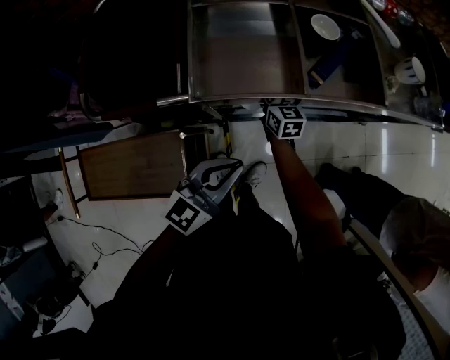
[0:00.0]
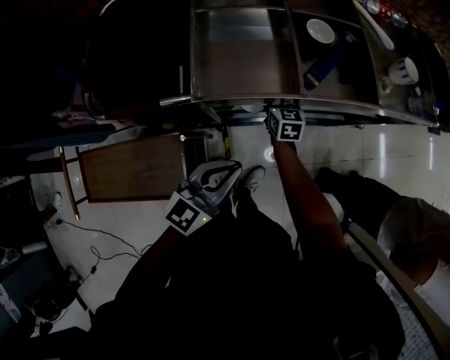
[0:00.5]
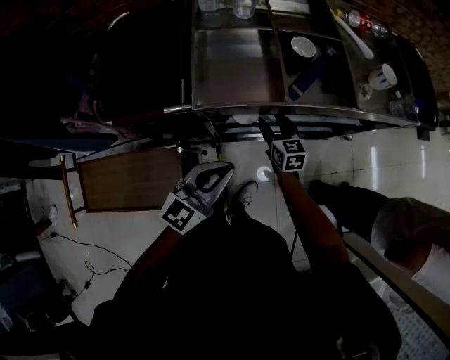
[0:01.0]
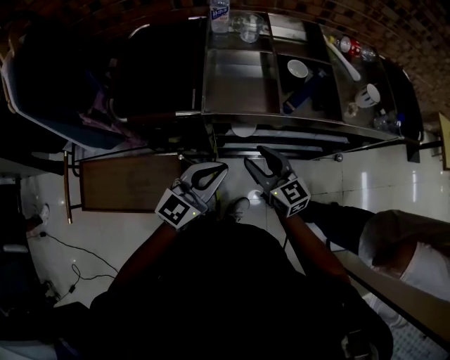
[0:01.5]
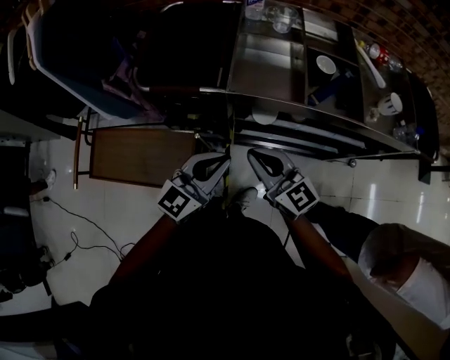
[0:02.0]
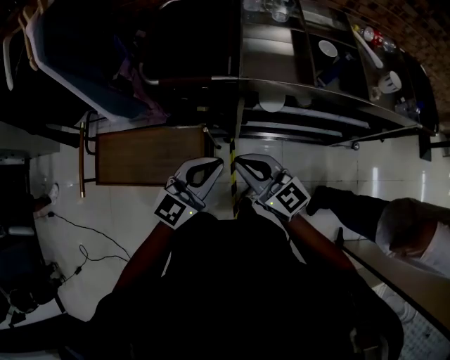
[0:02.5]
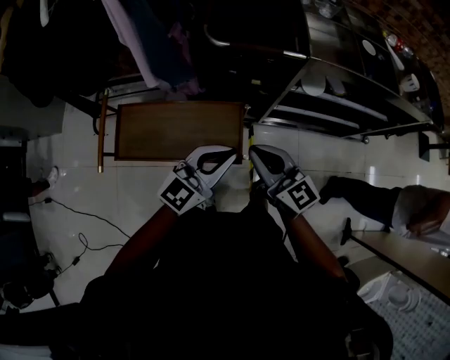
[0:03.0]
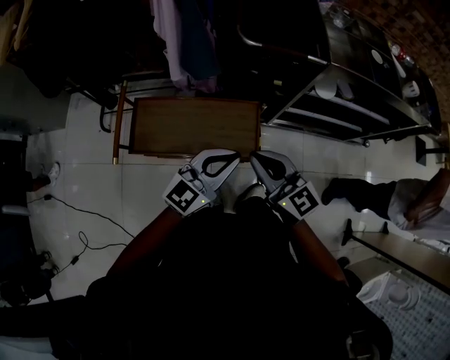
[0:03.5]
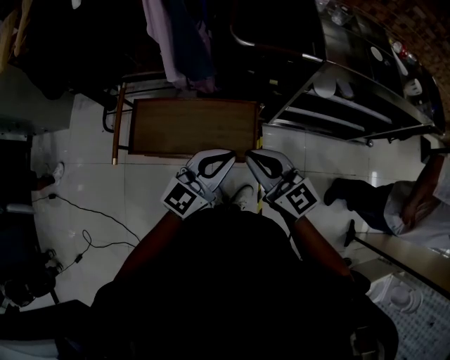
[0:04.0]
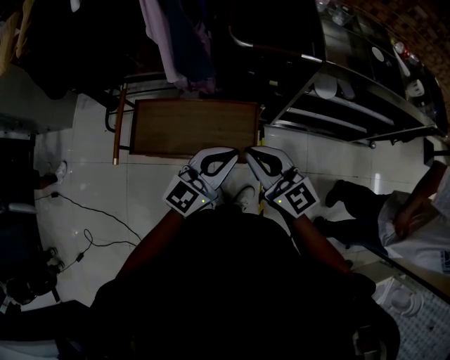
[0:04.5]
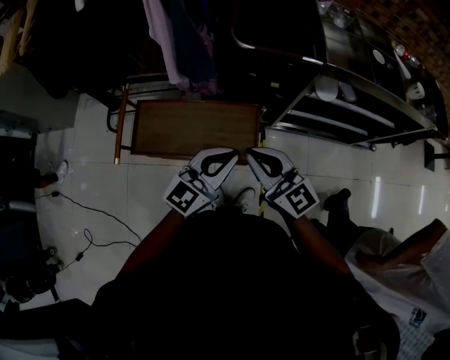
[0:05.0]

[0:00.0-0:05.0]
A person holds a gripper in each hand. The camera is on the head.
0:00.0 to 0:02.5: The left gripper ends up some 15 cm from where it was; the right gripper changes place by some 40 cm, changes its angle by roughly 40 degrees, and opens, then closes again.
0:02.5 to 0:05.0: The grippers both shift to the left and backward by some 25 cm.

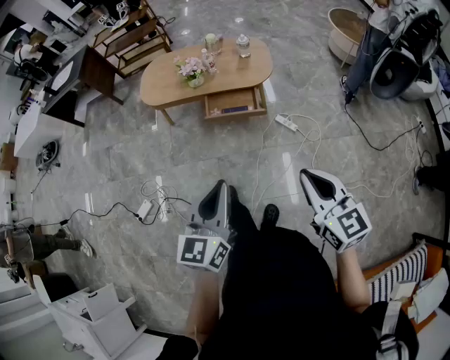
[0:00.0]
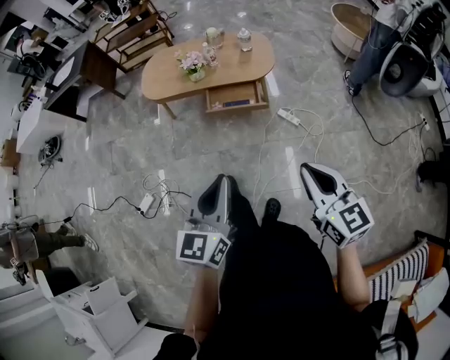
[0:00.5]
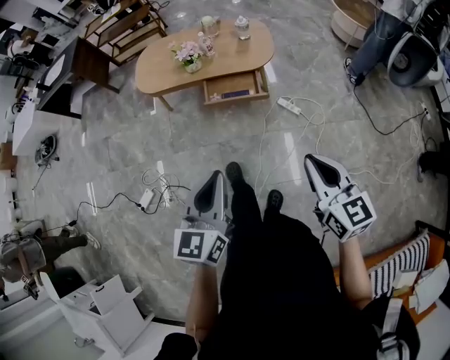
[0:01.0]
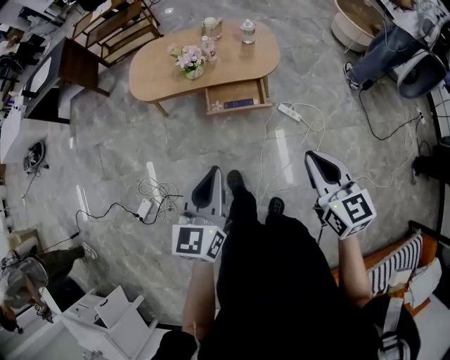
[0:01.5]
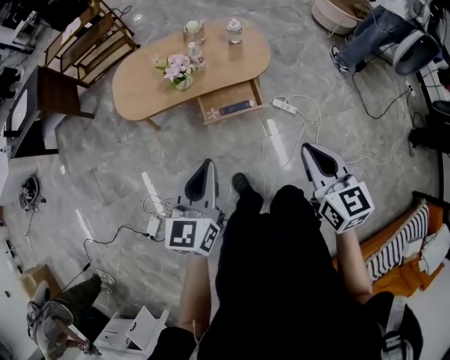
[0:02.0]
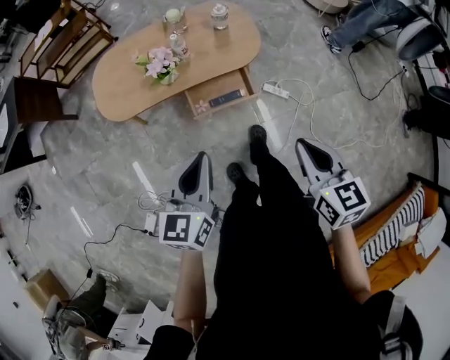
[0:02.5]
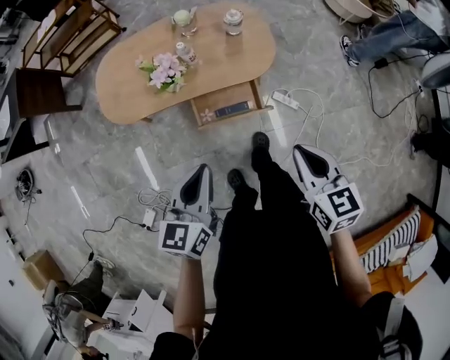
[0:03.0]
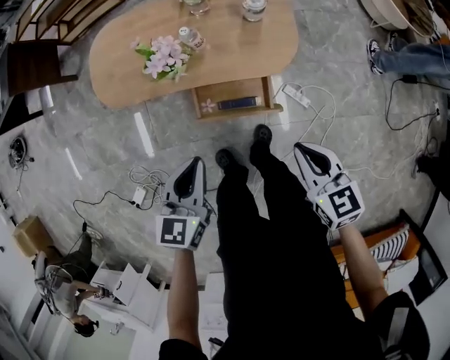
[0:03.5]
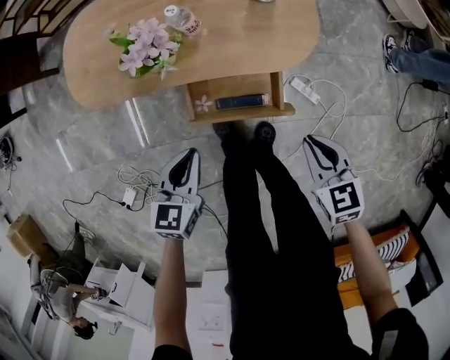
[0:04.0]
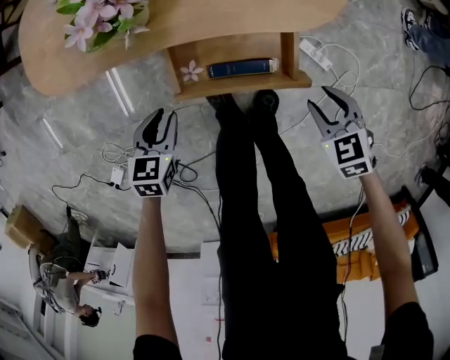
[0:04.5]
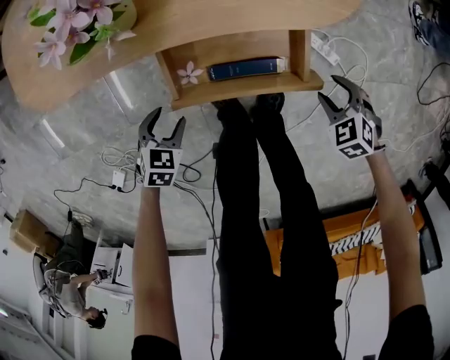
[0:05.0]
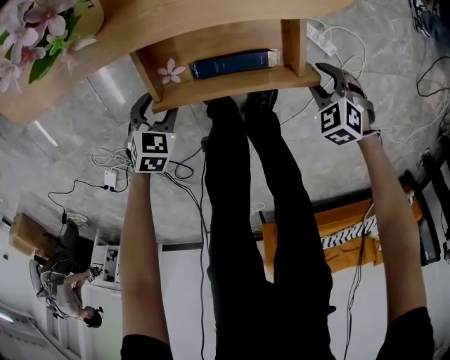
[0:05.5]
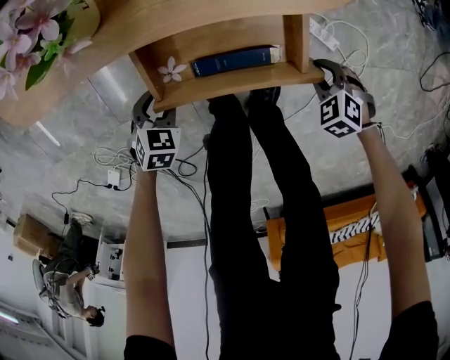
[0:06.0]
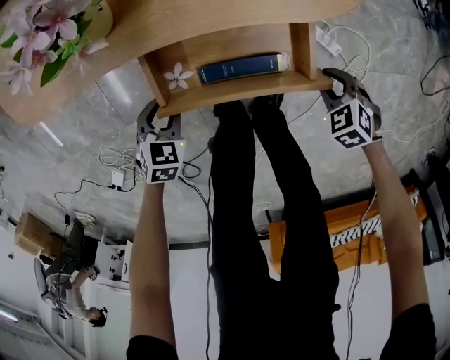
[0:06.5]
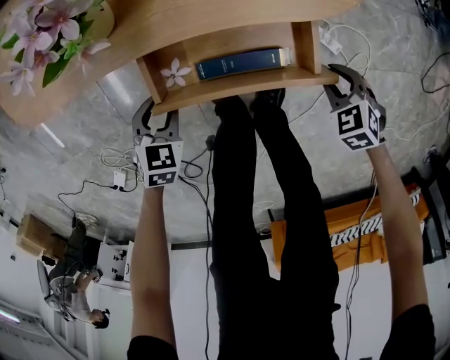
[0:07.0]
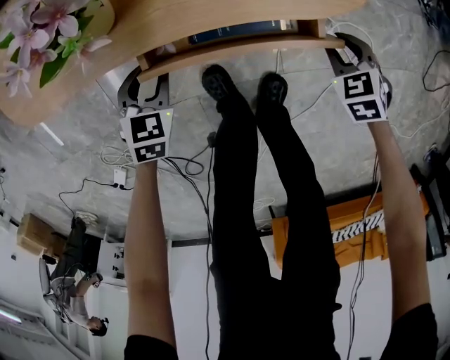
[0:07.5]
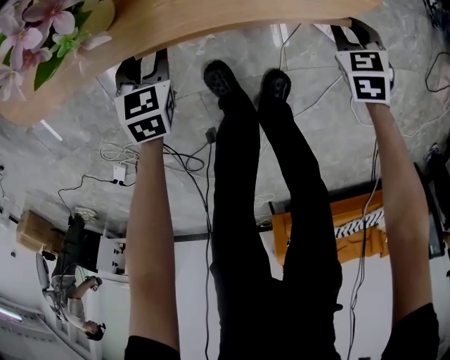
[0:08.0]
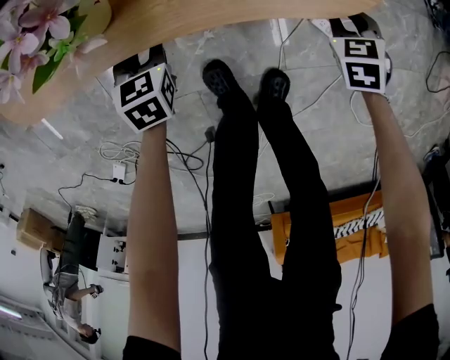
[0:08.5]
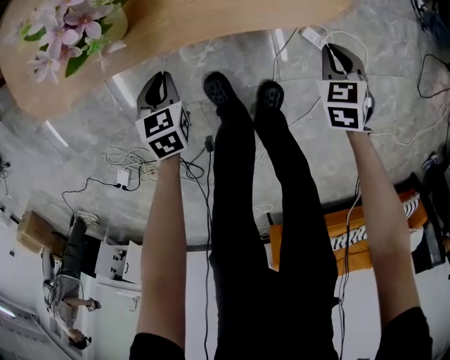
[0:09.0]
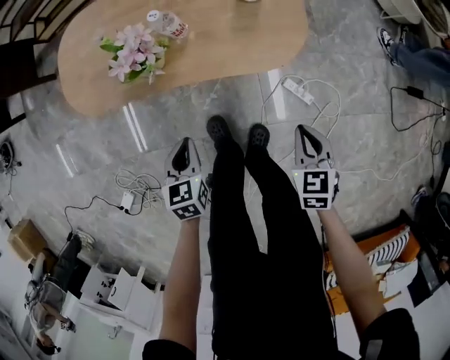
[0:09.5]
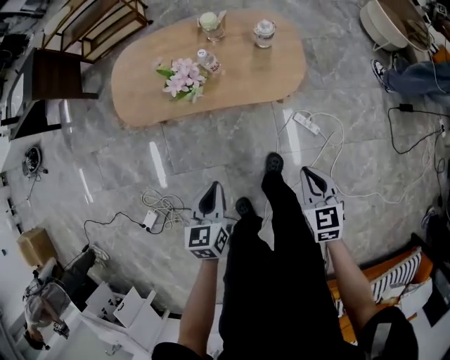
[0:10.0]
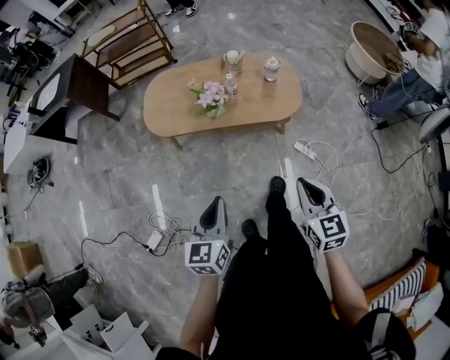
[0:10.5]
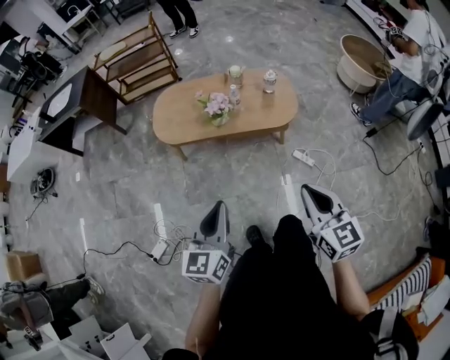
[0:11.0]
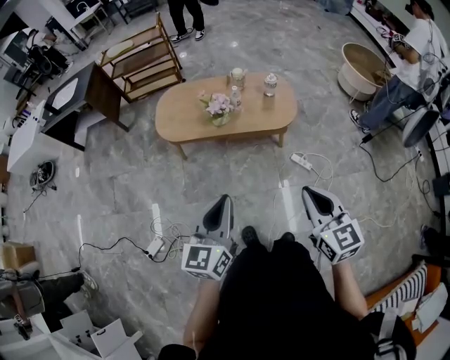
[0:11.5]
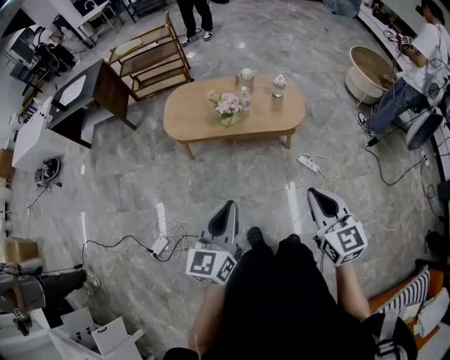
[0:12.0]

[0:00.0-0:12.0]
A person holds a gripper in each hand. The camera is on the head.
0:00.0 to 0:02.0: The two grippers go approximately 30 cm forward and to the left.
0:02.0 to 0:04.0: The two grippers go roughly 40 cm downward and forward. The left gripper changes its angle by some 30 degrees. Meanwhile the right gripper changes its angle by approximately 30 degrees.
0:04.0 to 0:06.0: The two grippers go about 35 cm downward. The left gripper rotates about 40 degrees, and opens up. The right gripper points its fingers some 30 degrees further downward, and opens, then closes again.
0:06.0 to 0:08.0: The right gripper ends up about 15 cm from where it was, and changes its angle by some 30 degrees. Meanwhile the left gripper changes place by roughly 15 cm, and changes its angle by approximately 20 degrees.
0:08.0 to 0:10.0: Both grippers travel together upward and backward, some 50 cm. The left gripper turns by roughly 30 degrees, and closes up. The right gripper turns by approximately 30 degrees.
0:10.0 to 0:12.0: The left gripper travels upward and backward by some 40 cm, and tips its fingers upward by approximately 30 degrees, while the right gripper heads upward, backward and to the left, covering about 40 cm, and turns by approximately 20 degrees.

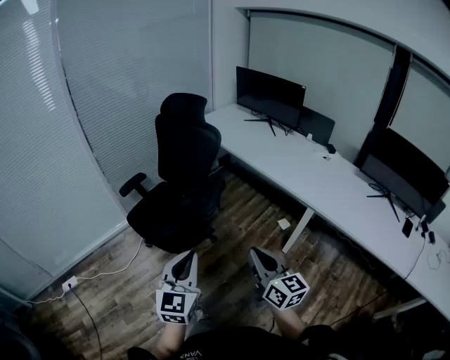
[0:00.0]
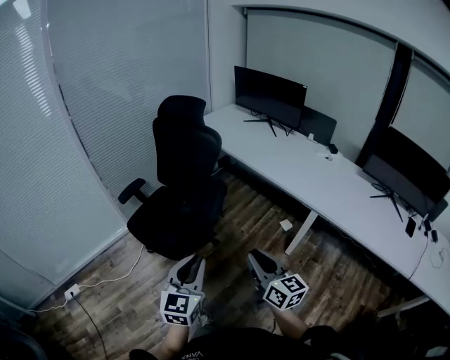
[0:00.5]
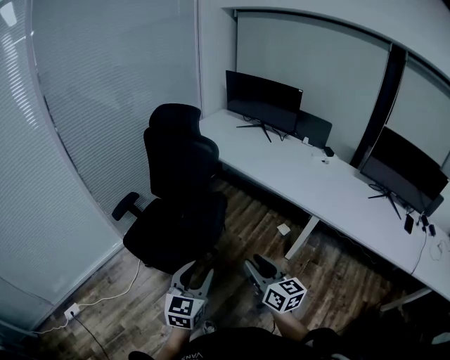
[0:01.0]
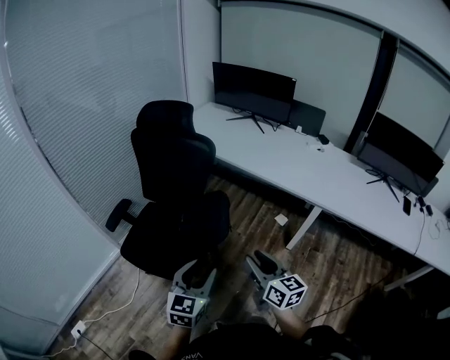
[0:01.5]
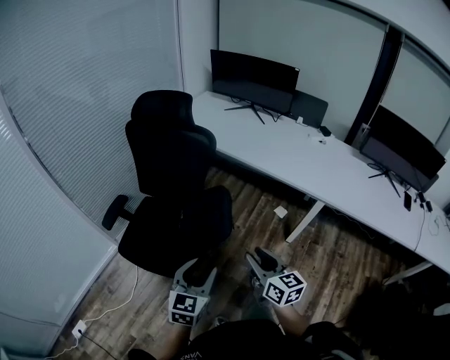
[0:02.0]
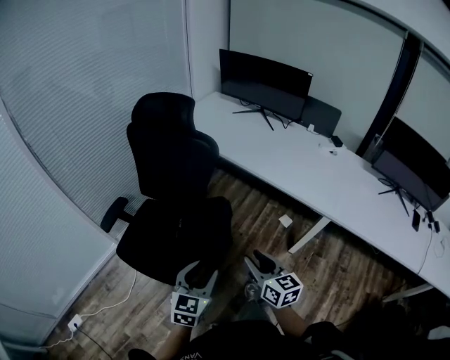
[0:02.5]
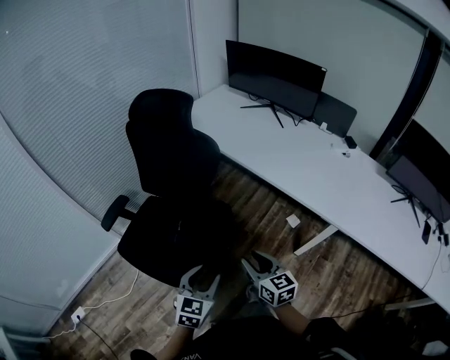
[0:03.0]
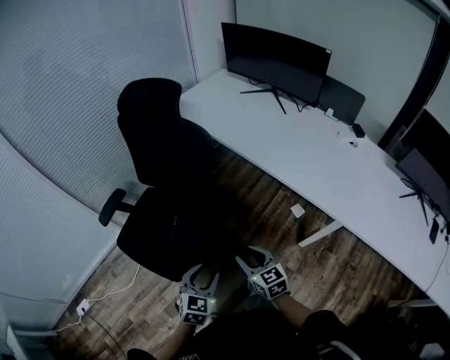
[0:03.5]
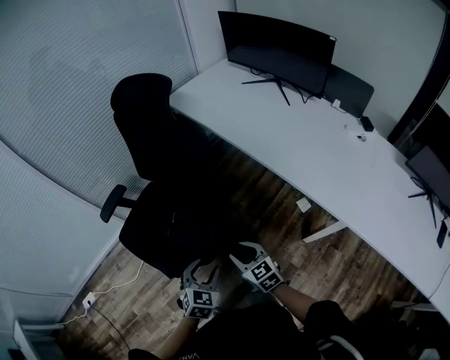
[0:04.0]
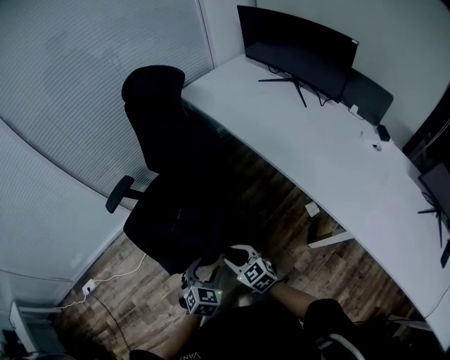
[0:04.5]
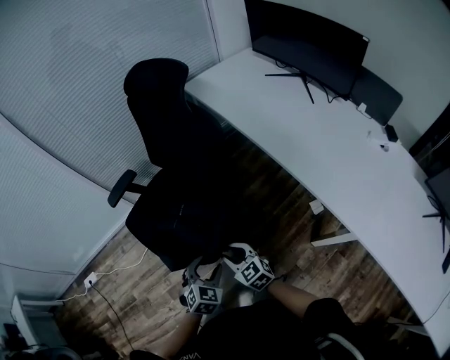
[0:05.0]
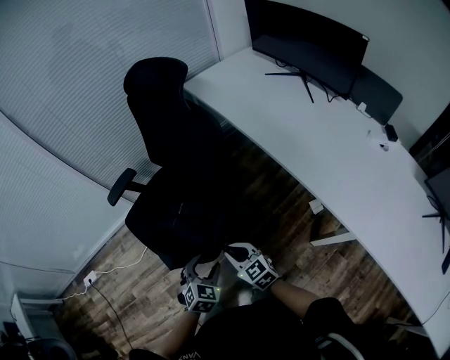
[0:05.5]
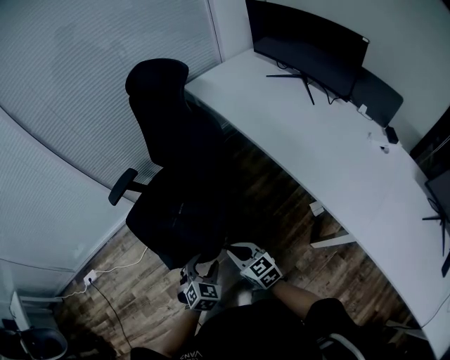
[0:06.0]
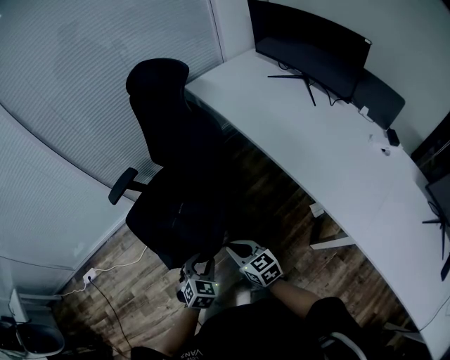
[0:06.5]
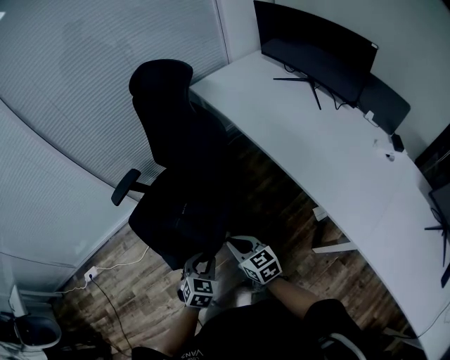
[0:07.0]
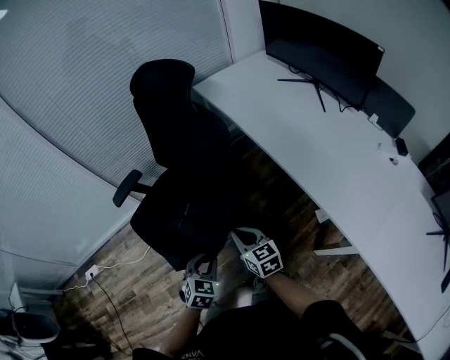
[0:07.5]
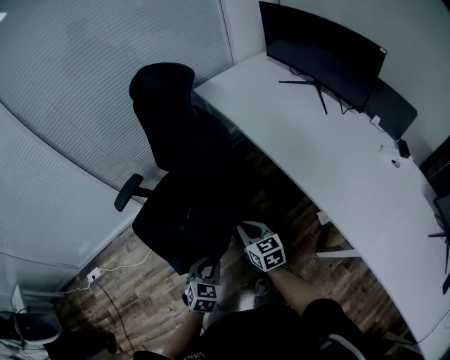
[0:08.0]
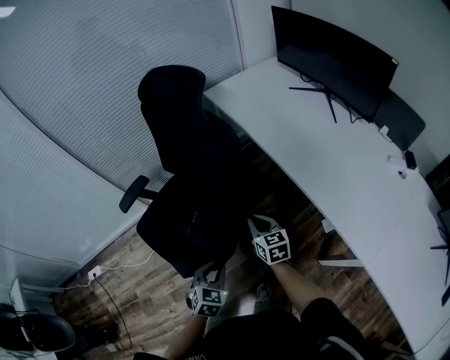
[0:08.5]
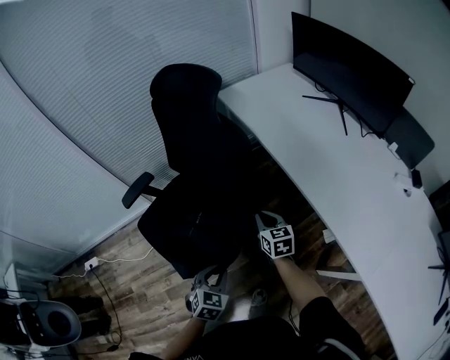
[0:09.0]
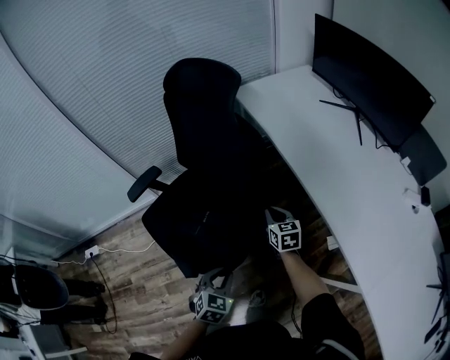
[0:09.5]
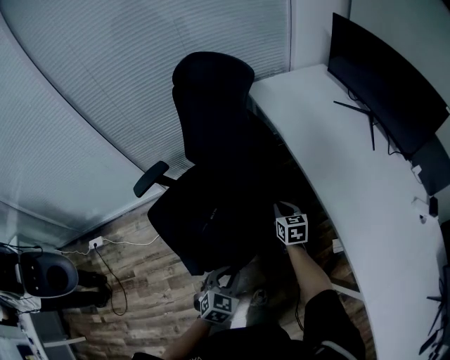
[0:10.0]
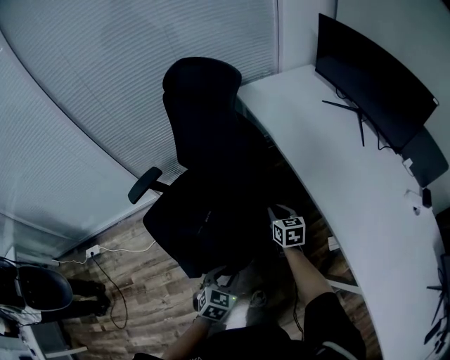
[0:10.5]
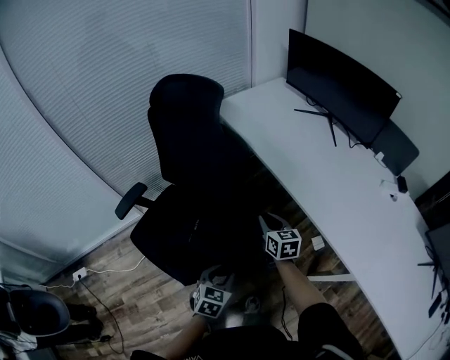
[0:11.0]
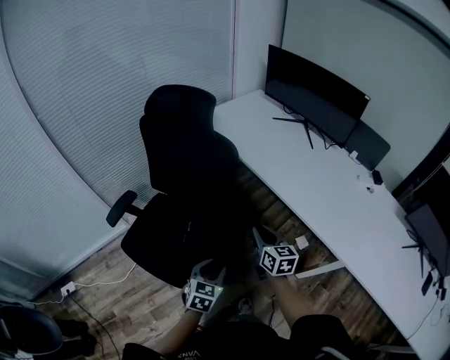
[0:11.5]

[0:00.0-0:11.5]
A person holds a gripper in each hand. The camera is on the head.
0:00.0 to 0:02.0: The left gripper goes approximately 25 cm forward, downward and to the left, changes its angle by about 30 degrees, and opens its fingers; the right gripper heads forward, to the left and downward, covering about 25 cm, and opens up.
0:02.0 to 0:04.0: The left gripper heads forward, downward and to the right, covering roughly 25 cm, and changes its angle by roughly 30 degrees; the right gripper shifts roughly 25 cm forward and downward, and rotates about 40 degrees.
0:04.0 to 0:06.0: The left gripper changes place by approximately 5 cm.
0:06.0 to 0:07.5: The left gripper closes up. The right gripper travels forward by some 10 cm.
0:07.5 to 0:09.5: The right gripper heads forward and to the right, covering roughly 20 cm.
0:09.5 to 0:11.5: The left gripper shifts about 5 cm upward. The right gripper heads backward and upward, covering approximately 20 cm, and turns by about 20 degrees.
